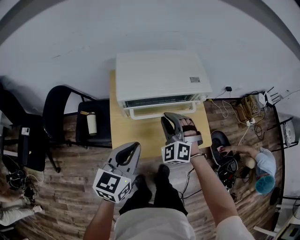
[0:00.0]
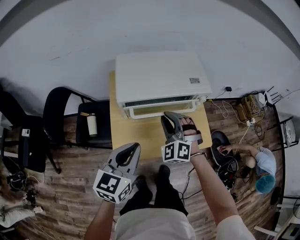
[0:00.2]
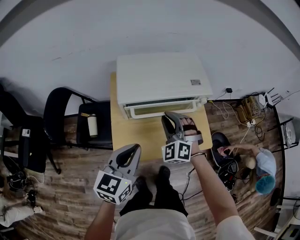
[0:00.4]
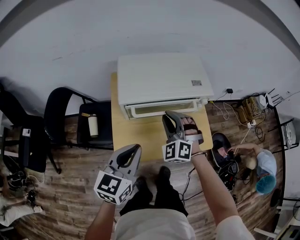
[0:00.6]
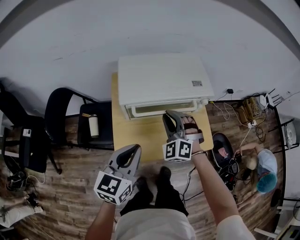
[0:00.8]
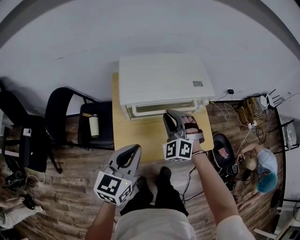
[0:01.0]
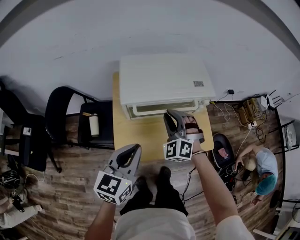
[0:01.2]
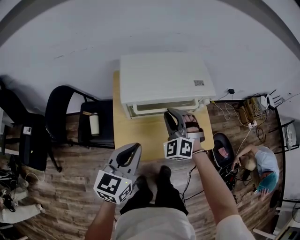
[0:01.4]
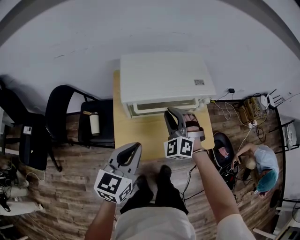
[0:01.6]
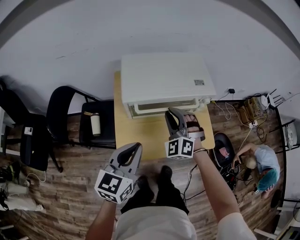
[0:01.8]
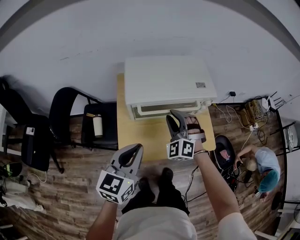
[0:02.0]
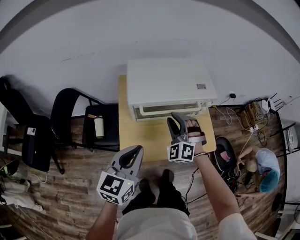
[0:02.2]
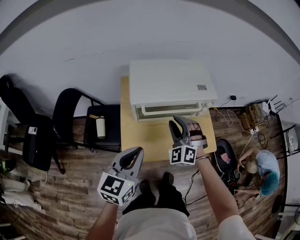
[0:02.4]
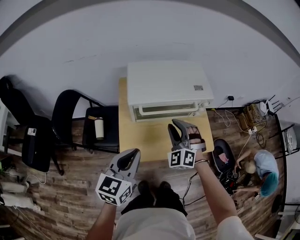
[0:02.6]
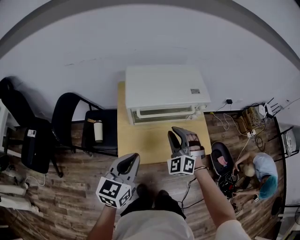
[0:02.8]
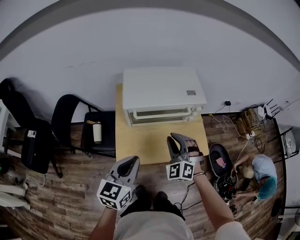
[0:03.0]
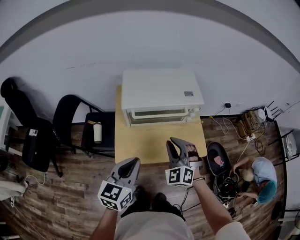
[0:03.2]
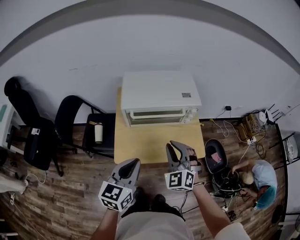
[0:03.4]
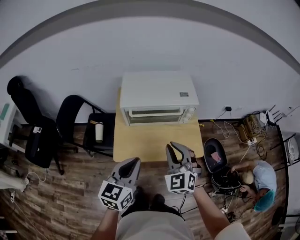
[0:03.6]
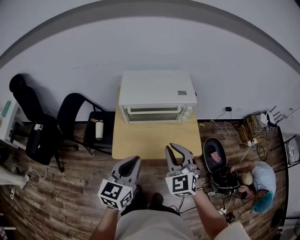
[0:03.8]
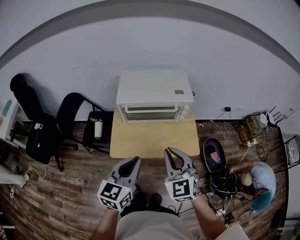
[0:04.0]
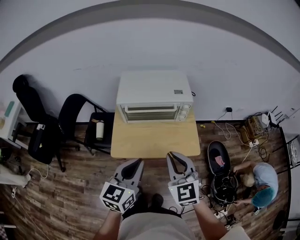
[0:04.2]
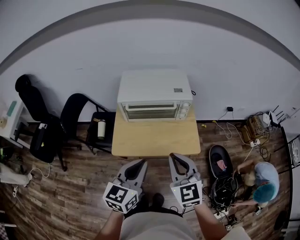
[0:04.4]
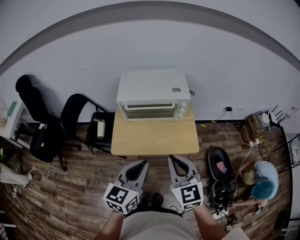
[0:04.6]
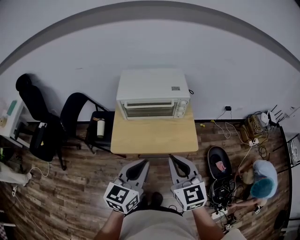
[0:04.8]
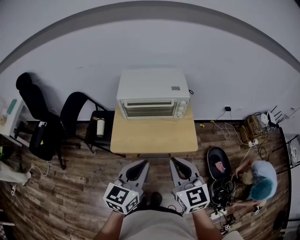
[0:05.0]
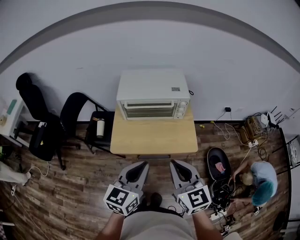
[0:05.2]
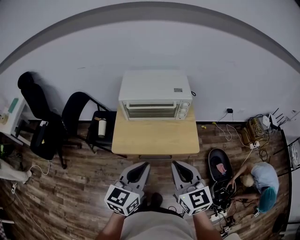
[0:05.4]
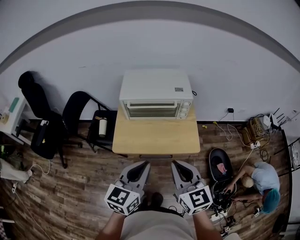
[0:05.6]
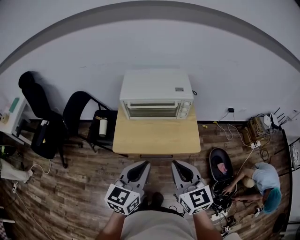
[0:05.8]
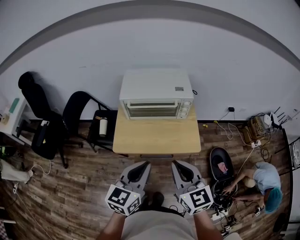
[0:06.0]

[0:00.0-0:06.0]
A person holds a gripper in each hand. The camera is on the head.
0.0 to 1.6 s: There are only small adjustments of the grippers.
1.6 to 3.0 s: The right gripper shifts about 10 cm backward; the left gripper goes some 5 cm backward.
3.0 to 4.4 s: The left gripper is displaced to the right and backward by about 15 cm. The right gripper goes about 20 cm backward, upward and to the right, and swivels about 40 degrees.
4.4 to 6.0 s: The grippers make only small movements.

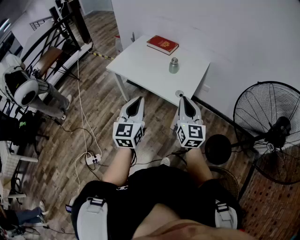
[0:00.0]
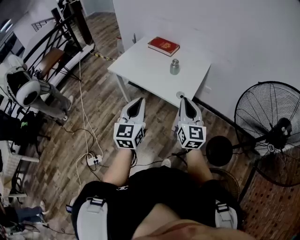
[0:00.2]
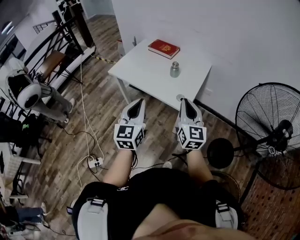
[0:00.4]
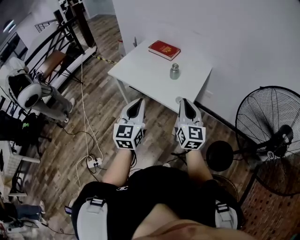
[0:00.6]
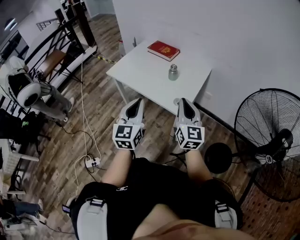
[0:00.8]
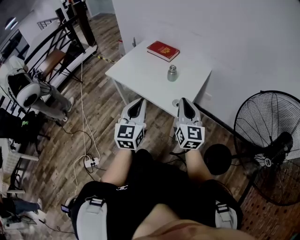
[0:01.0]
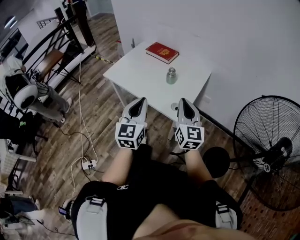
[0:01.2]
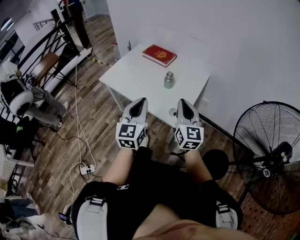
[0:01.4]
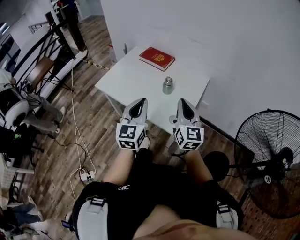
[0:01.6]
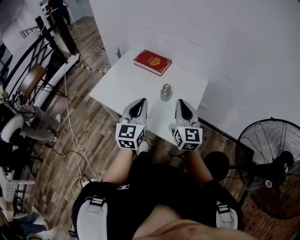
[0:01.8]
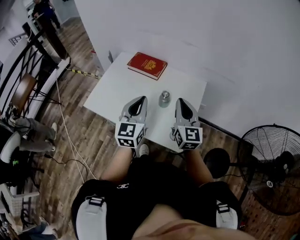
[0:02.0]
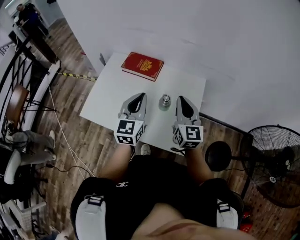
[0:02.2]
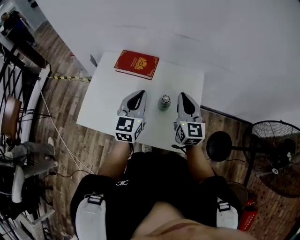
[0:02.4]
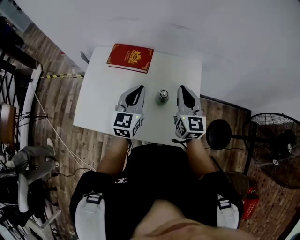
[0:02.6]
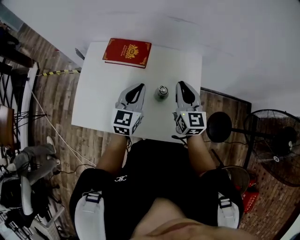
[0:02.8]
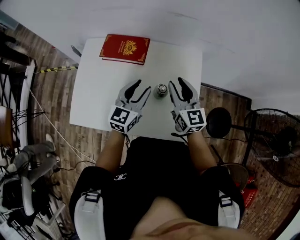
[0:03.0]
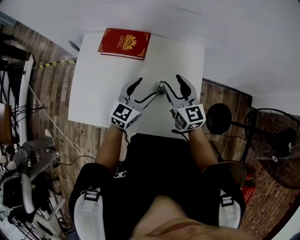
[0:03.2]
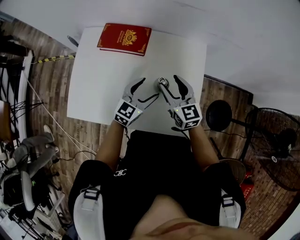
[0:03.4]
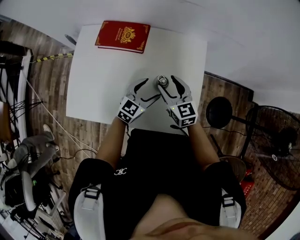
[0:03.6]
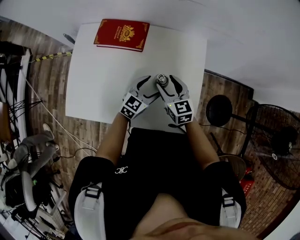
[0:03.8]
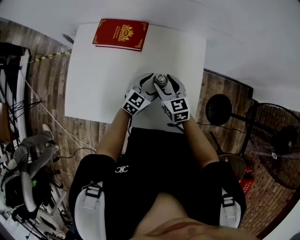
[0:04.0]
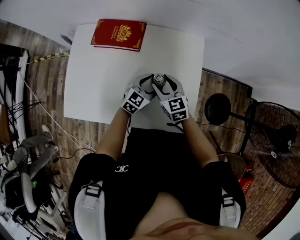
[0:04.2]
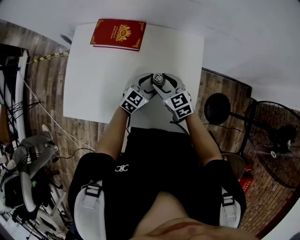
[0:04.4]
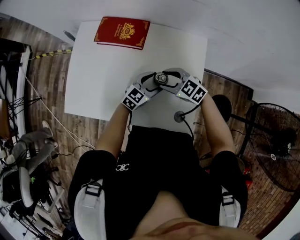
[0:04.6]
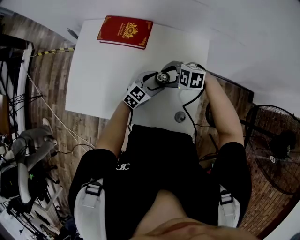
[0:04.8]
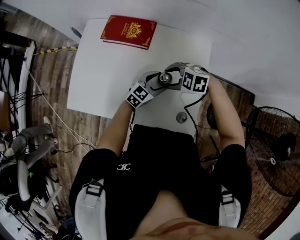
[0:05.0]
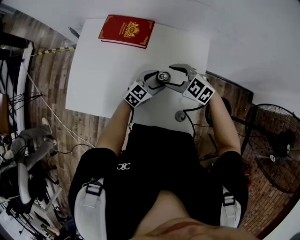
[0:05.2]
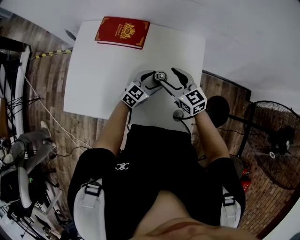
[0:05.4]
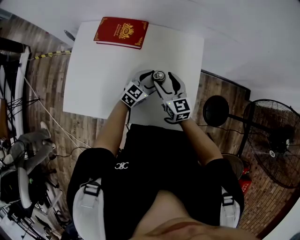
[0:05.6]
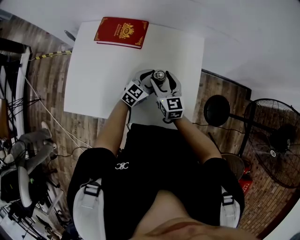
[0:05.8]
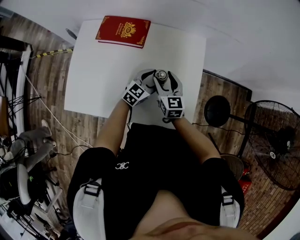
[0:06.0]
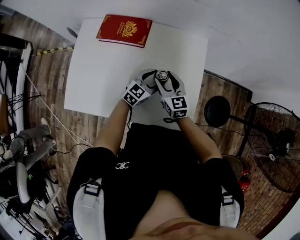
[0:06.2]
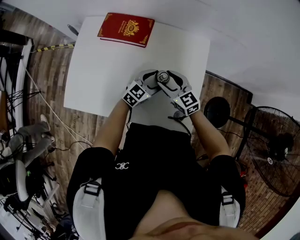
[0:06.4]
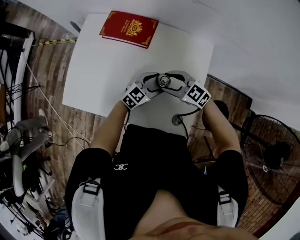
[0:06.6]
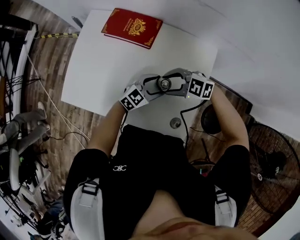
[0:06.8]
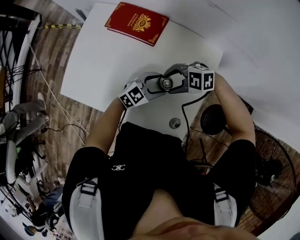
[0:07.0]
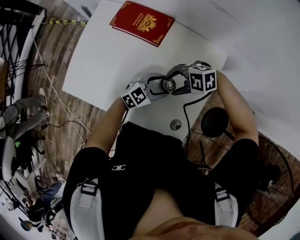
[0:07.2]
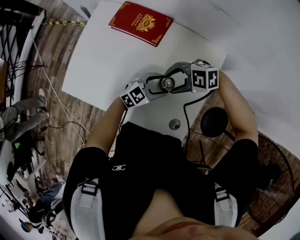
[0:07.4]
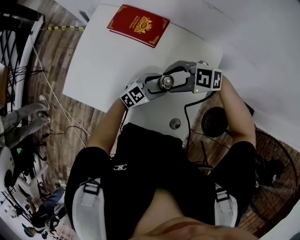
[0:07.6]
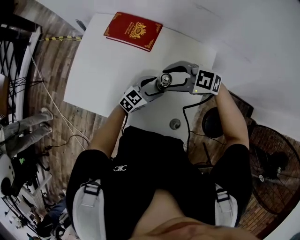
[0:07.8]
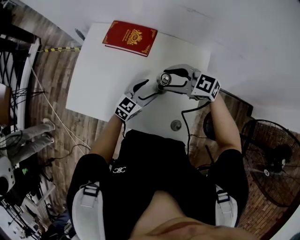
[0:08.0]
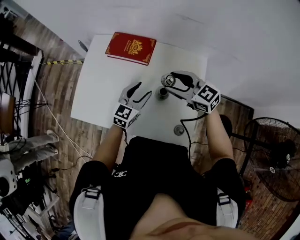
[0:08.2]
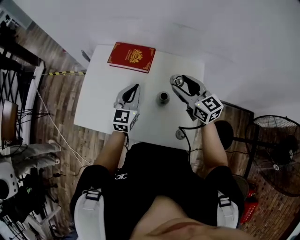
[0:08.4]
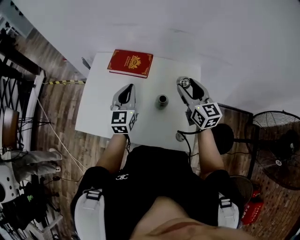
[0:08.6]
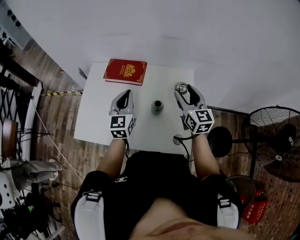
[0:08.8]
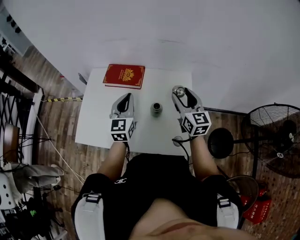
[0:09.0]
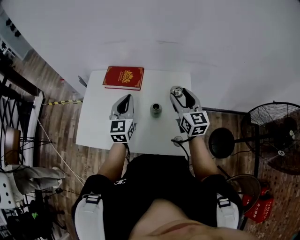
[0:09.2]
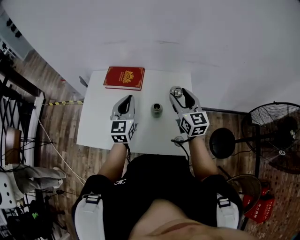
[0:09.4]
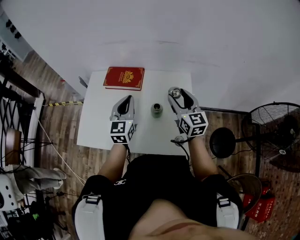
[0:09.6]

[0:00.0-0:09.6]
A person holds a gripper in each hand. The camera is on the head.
0.0 to 1.6 s: The two grippers go approximately 20 cm forward.
1.6 to 3.2 s: The left gripper changes place by some 35 cm, changes its angle by some 50 degrees, and opens. The right gripper changes place by approximately 30 cm, and opens.
3.2 to 4.8 s: The two grippers go about 10 cm downward. The right gripper points its fingers about 40 degrees further downward.
4.8 to 6.4 s: The right gripper tips its fingers upward by some 30 degrees.
6.4 to 8.0 s: The left gripper ends up about 5 cm from where it was. Meanwhile the right gripper travels upward by roughly 10 cm, and rotates about 40 degrees.
8.0 to 9.6 s: The left gripper travels upward by some 15 cm, changes its angle by some 30 degrees, and closes its fingers; the right gripper shifts by approximately 10 cm, and swivels roughly 70 degrees.

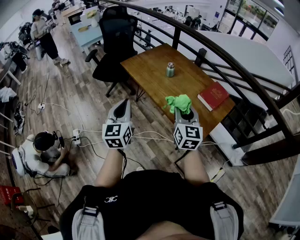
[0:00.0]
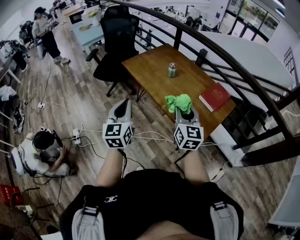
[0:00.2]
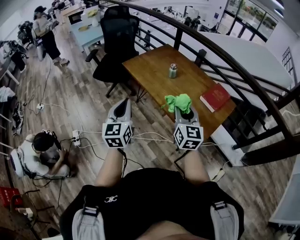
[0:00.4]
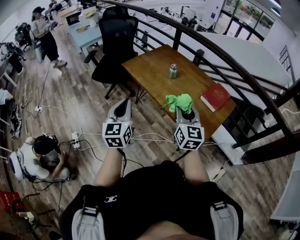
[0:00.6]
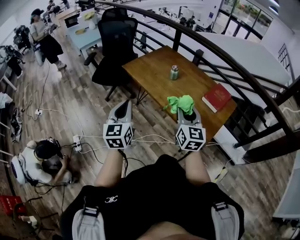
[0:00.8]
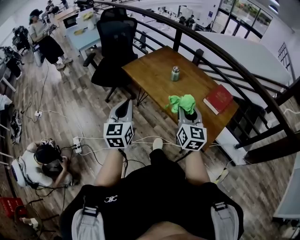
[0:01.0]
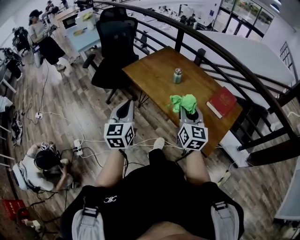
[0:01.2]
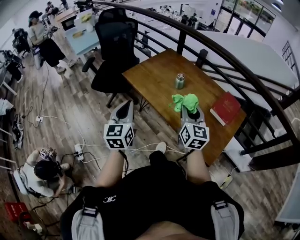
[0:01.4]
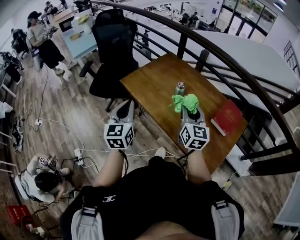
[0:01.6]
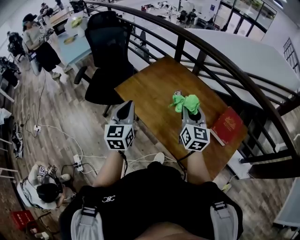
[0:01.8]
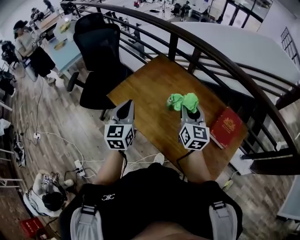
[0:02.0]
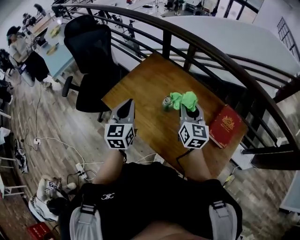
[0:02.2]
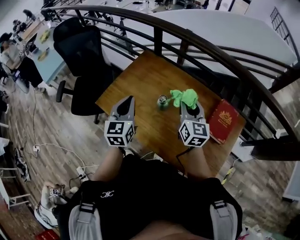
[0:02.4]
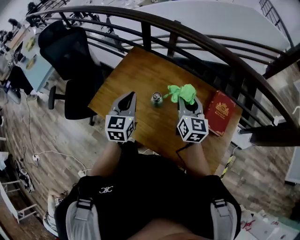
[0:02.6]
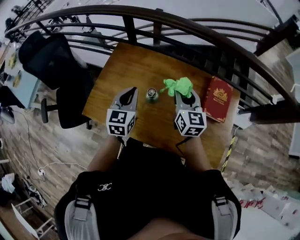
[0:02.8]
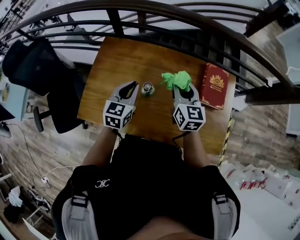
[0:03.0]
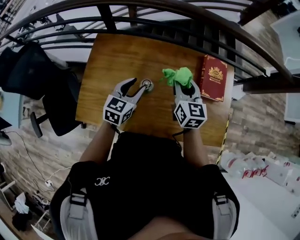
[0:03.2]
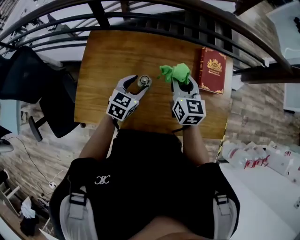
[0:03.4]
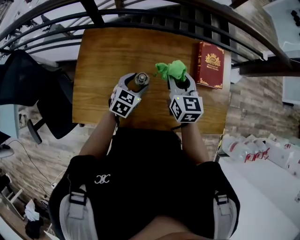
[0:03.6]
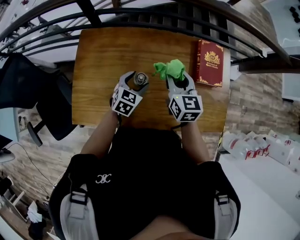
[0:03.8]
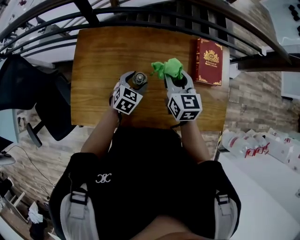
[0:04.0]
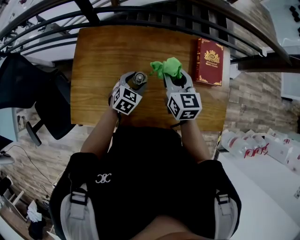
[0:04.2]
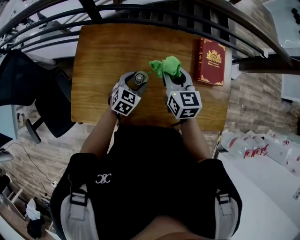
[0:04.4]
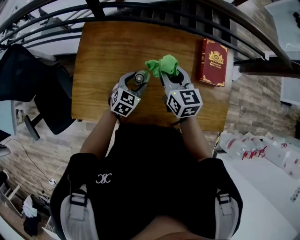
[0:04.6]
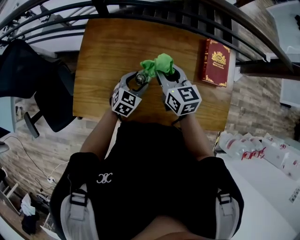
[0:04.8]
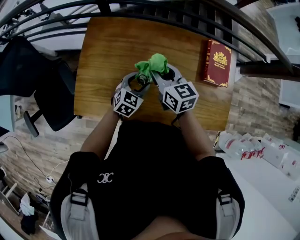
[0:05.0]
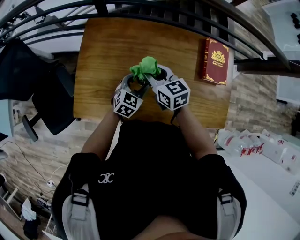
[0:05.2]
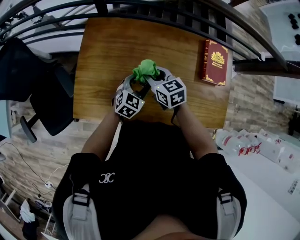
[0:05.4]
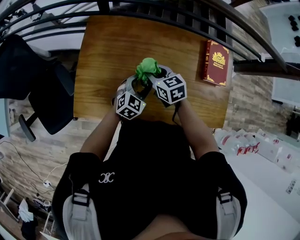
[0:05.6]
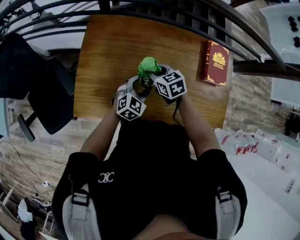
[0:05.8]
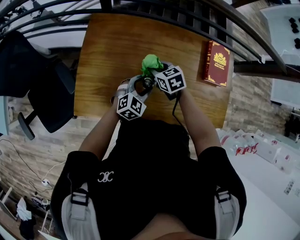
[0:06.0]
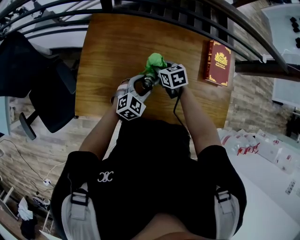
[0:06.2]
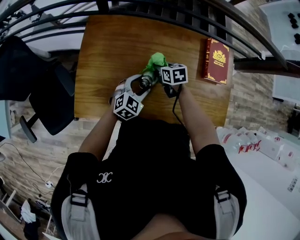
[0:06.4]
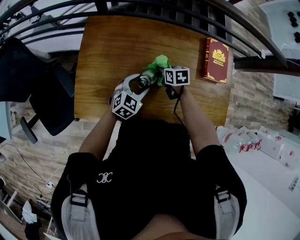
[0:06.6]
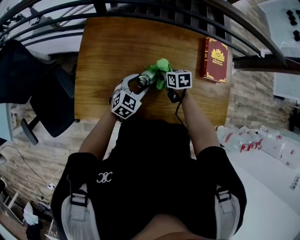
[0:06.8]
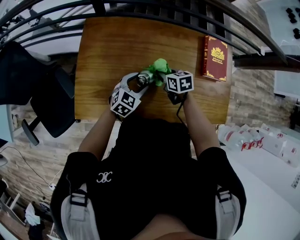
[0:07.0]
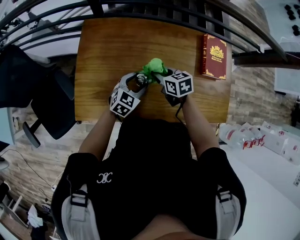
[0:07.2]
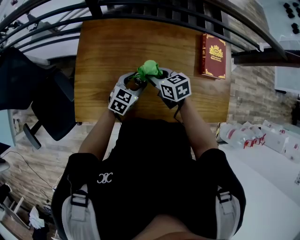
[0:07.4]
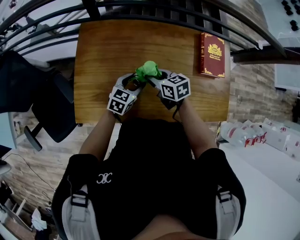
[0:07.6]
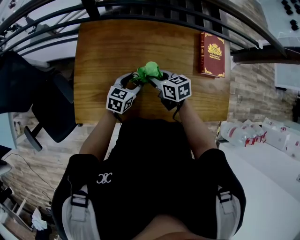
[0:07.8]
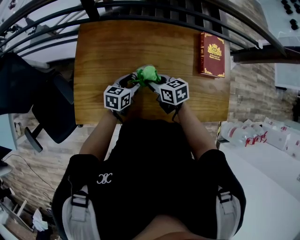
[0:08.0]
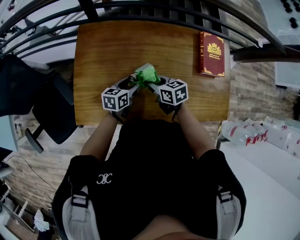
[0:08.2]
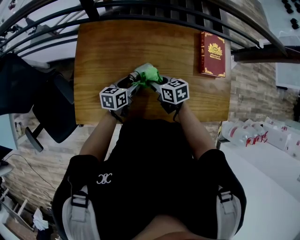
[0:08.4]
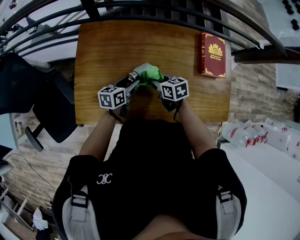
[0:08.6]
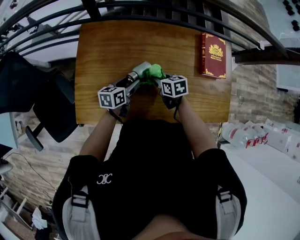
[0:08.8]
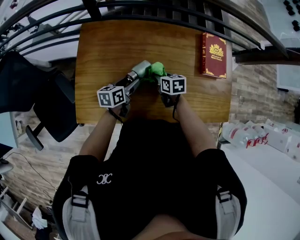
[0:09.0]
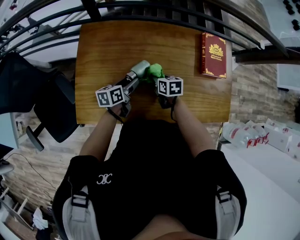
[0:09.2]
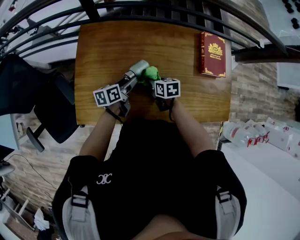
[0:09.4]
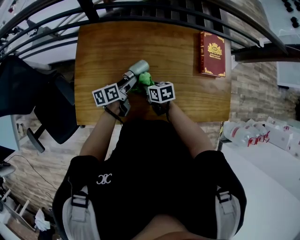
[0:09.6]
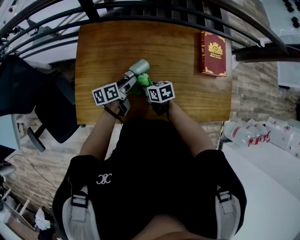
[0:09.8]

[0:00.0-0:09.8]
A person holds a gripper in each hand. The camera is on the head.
0.0 to 1.4 s: The right gripper heads forward, covering approximately 15 cm. The left gripper shifts roughly 20 cm forward and to the left.
1.4 to 2.8 s: The right gripper moves roughly 35 cm, and changes its angle by roughly 20 degrees. Meanwhile the left gripper changes place by about 40 cm, and changes its angle by some 40 degrees.
2.8 to 4.2 s: The left gripper heads downward, covering roughly 20 cm, changes its angle by some 40 degrees, and opens its fingers, while the right gripper travels downward by approximately 5 cm.
4.2 to 5.6 s: The left gripper moves some 5 cm. Meanwhile the right gripper shifts about 20 cm to the left and downward, and rotates roughly 30 degrees.
5.6 to 7.0 s: The right gripper moves to the right and downward, approximately 10 cm.
7.0 to 8.4 s: The left gripper rotates around the line of its fingers by some 40 degrees, counterclockwise from behind; the right gripper shifts by roughly 5 cm.
8.4 to 9.8 s: The right gripper goes approximately 5 cm downward; the left gripper rotates approximately 20 degrees.
